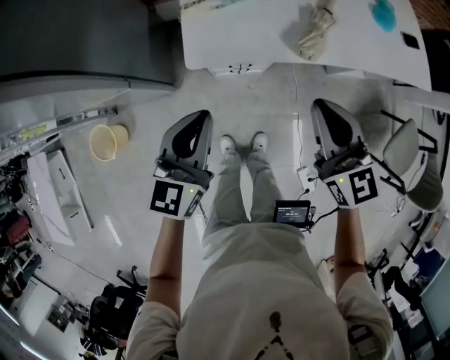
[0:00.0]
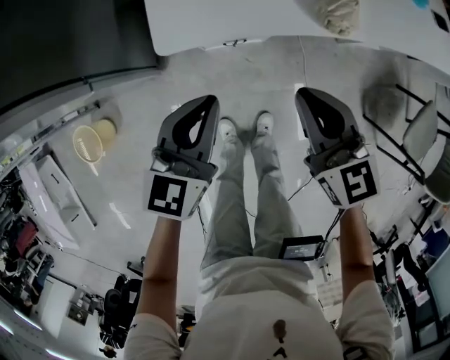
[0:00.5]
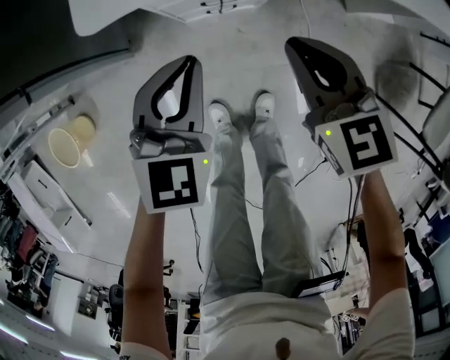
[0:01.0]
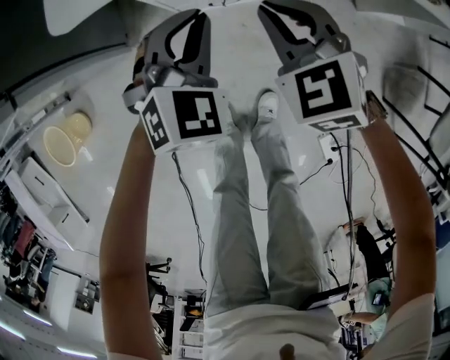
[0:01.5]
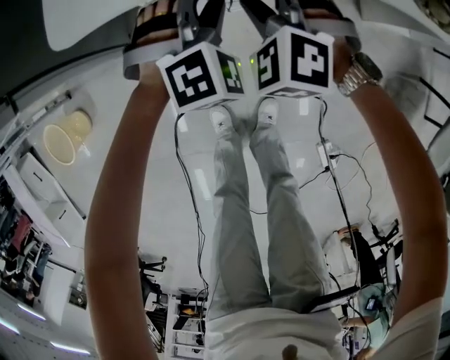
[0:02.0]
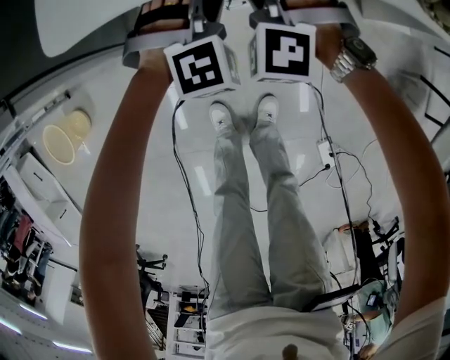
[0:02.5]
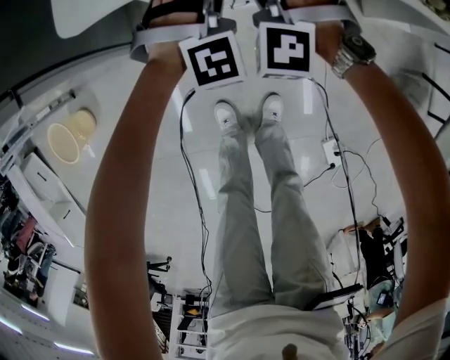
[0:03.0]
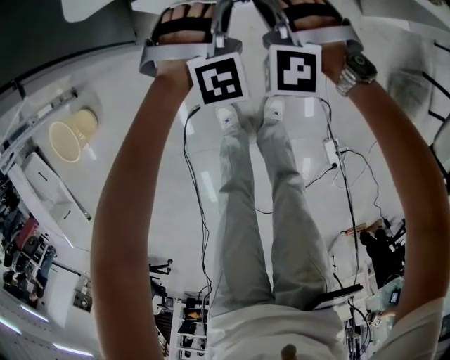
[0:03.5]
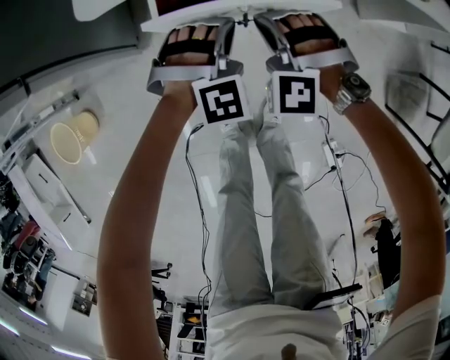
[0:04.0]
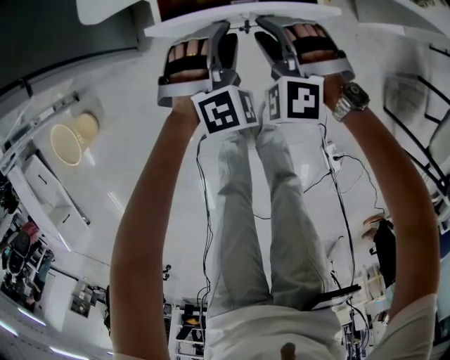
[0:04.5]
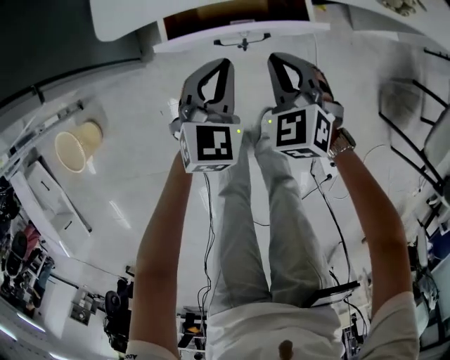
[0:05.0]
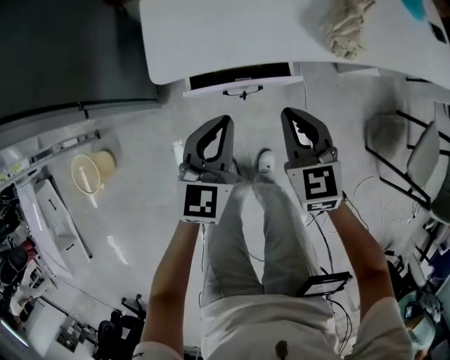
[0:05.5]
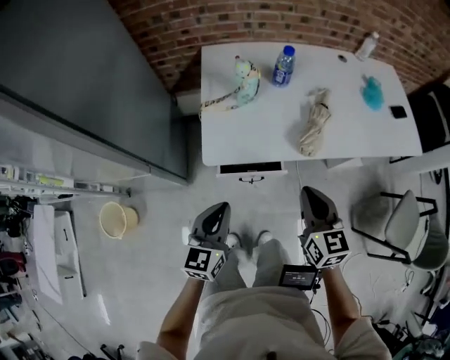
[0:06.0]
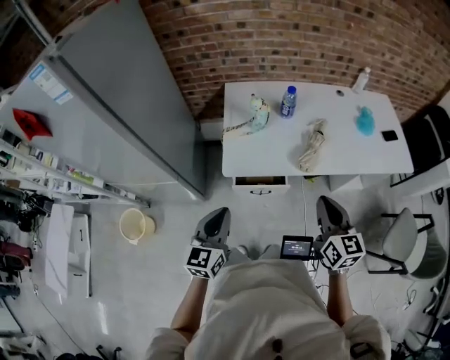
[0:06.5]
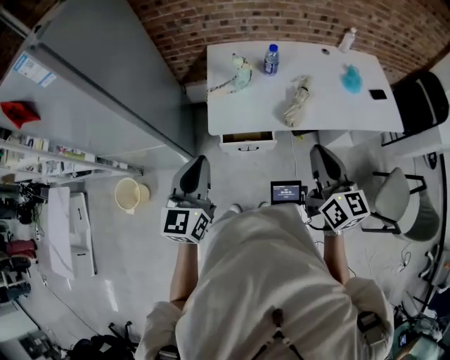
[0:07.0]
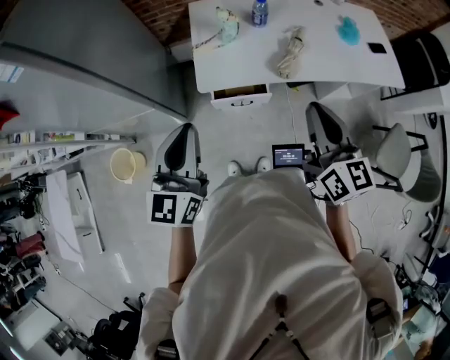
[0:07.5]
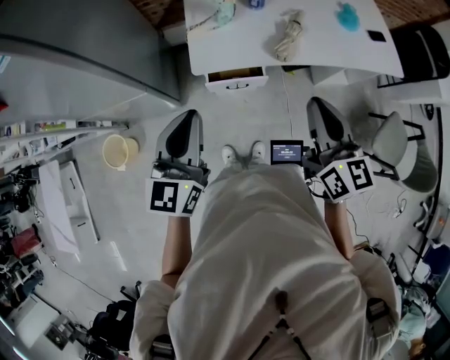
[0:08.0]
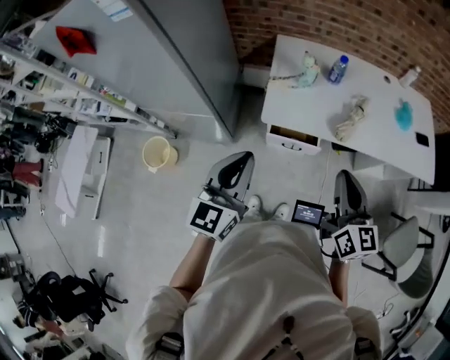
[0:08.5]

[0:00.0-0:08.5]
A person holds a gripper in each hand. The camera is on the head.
0:00.0 to 0:02.0: The grippers both shift downward by some 50 cm. The left gripper rotates around the line of its fingers by some 60 degrees, clockwise from behind, and opens its fingers; the right gripper rotates around the line of its fingers by about 50 degrees, counterclockwise from behind, and opens.
0:02.0 to 0:04.0: Both grippers travel together backward, approximately 10 cm. The right gripper closes up. Meanwhile the left gripper closes up.
0:04.0 to 0:06.5: The grippers both shift upward by some 50 cm. The right gripper rotates around the line of its fingers by about 90 degrees, clockwise from behind, and opens, then closes again. The left gripper rolls counterclockwise, seen from behind, by approximately 80 degrees, and opens, then closes again.
0:06.5 to 0:08.5: The right gripper travels upward, backward and to the left by approximately 10 cm, while the left gripper is displaced upward and backward by roughly 15 cm.

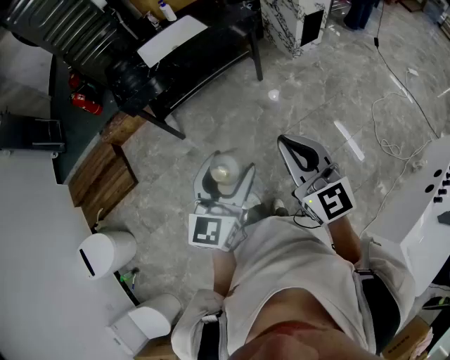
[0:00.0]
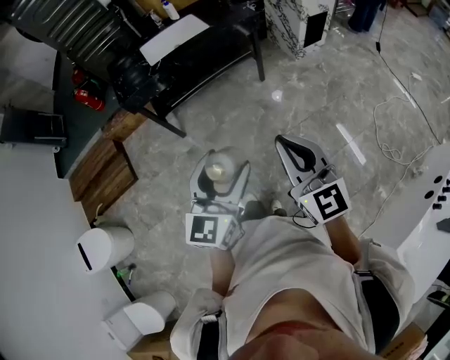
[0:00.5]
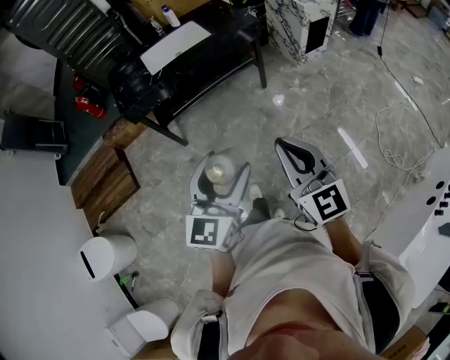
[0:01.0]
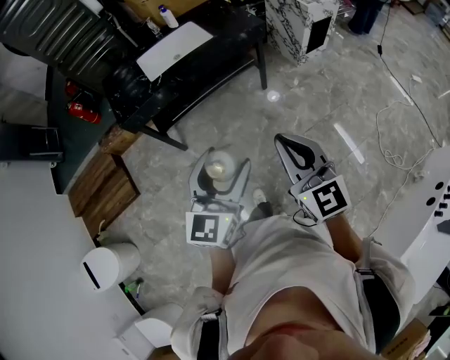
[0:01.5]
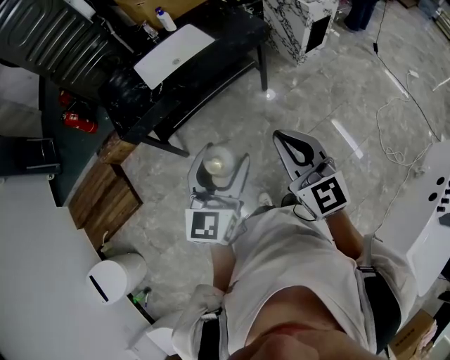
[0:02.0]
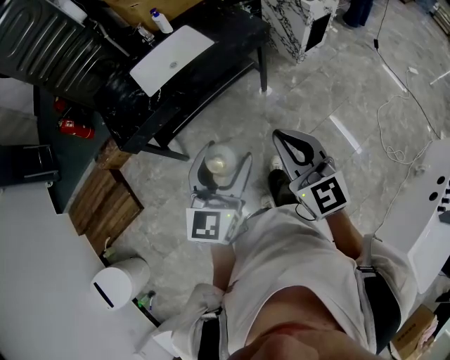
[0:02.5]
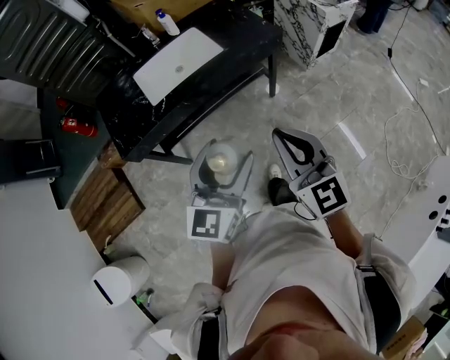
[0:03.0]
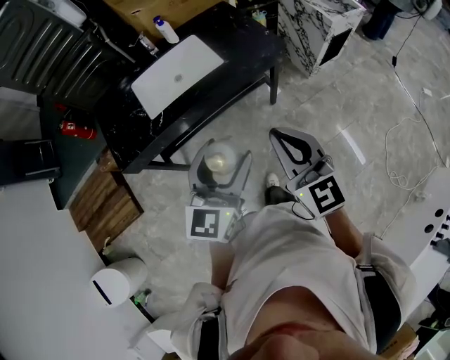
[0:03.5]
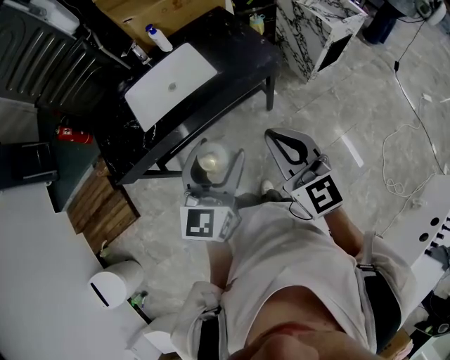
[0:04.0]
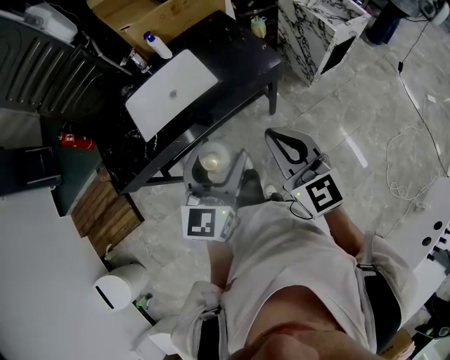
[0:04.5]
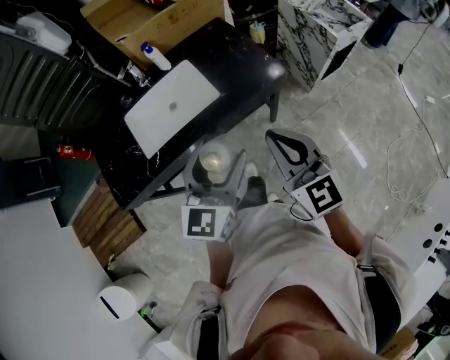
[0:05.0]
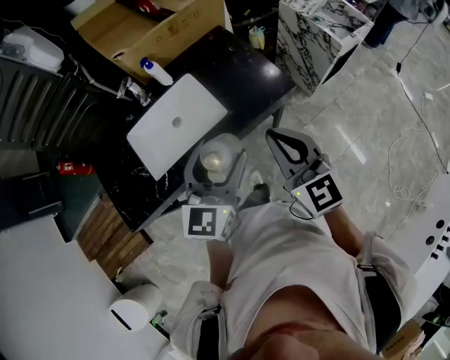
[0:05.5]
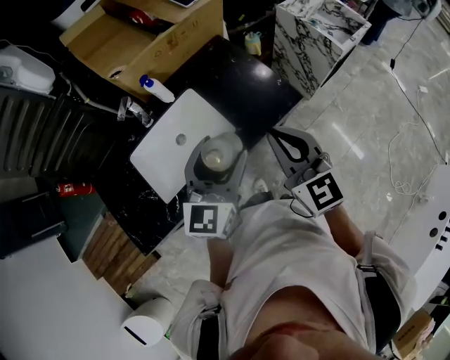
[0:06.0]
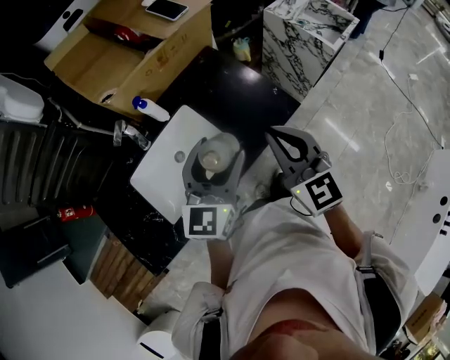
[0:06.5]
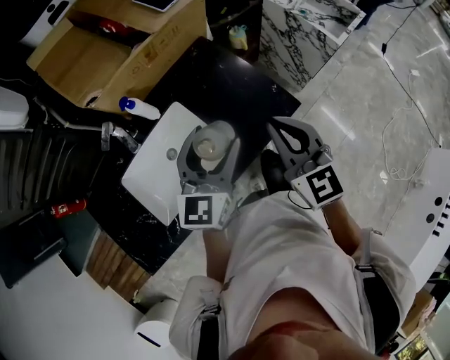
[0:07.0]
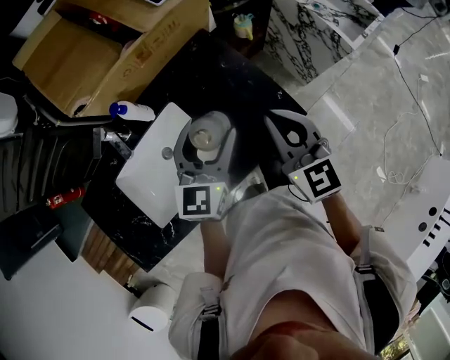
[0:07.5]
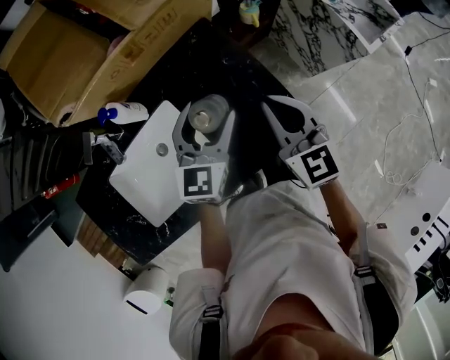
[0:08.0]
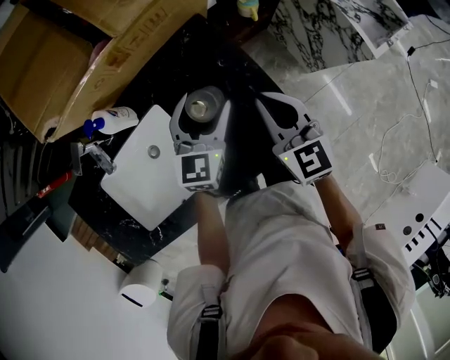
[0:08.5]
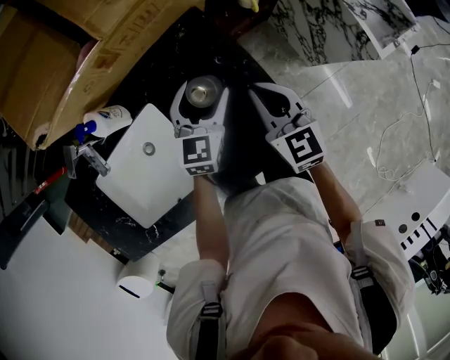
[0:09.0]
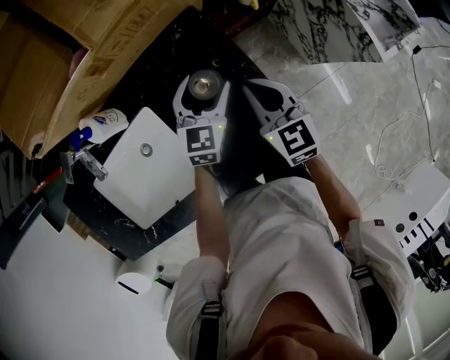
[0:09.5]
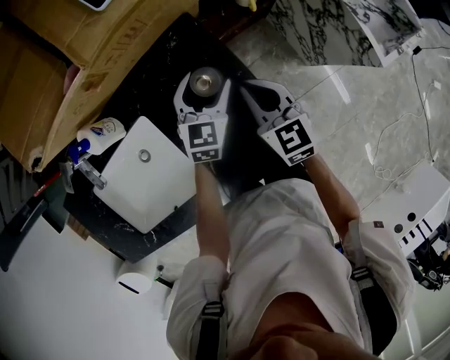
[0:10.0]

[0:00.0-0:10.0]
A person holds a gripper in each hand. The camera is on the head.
0:00.0 to 0:02.0: Both grippers move forward, about 20 cm.
0:02.0 to 0:04.0: The grippers both shift forward by roughly 30 cm.
0:04.0 to 0:06.0: The grippers both shift forward by approximately 25 cm.
0:06.0 to 0:08.0: Both grippers travel together forward and downward, some 30 cm.
0:08.0 to 0:10.0: The left gripper goes some 20 cm downward, forward and to the right. The right gripper travels downward and forward by about 15 cm.

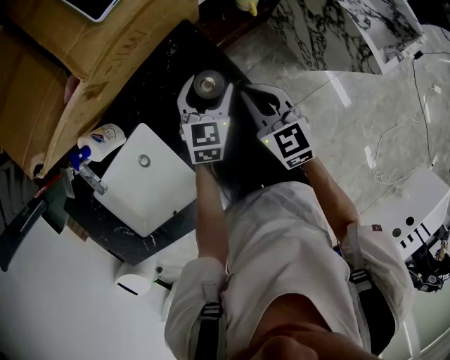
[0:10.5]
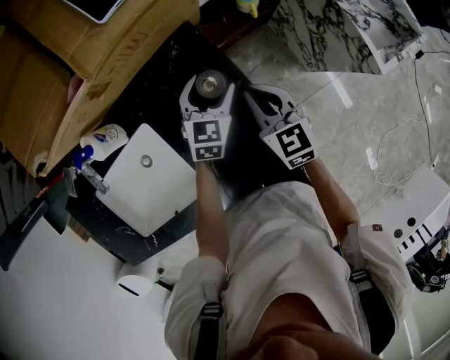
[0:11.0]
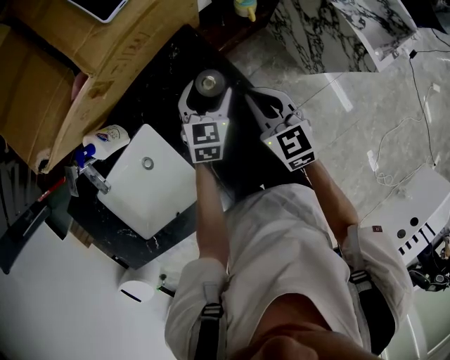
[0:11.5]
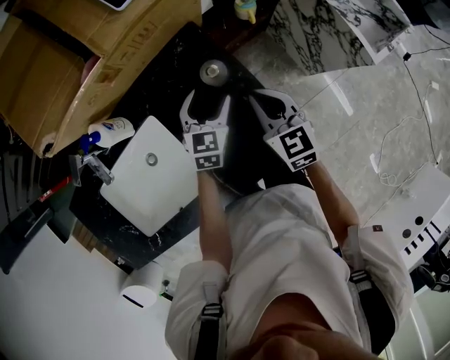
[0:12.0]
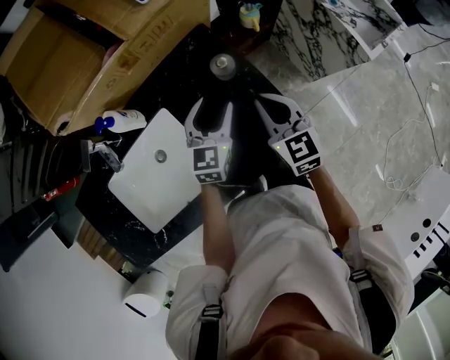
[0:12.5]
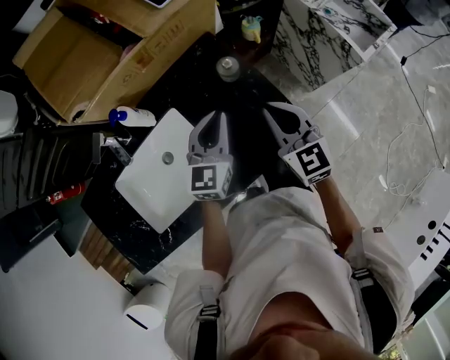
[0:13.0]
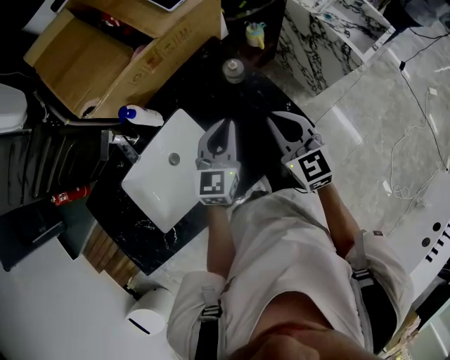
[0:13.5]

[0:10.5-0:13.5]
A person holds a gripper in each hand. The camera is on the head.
0:10.5 to 0:12.0: The left gripper changes place by some 5 cm.
0:12.0 to 0:13.5: The left gripper goes about 20 cm upward and backward, and closes up, while the right gripper shifts some 15 cm backward and upward.

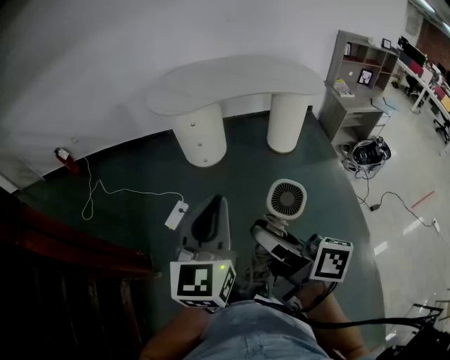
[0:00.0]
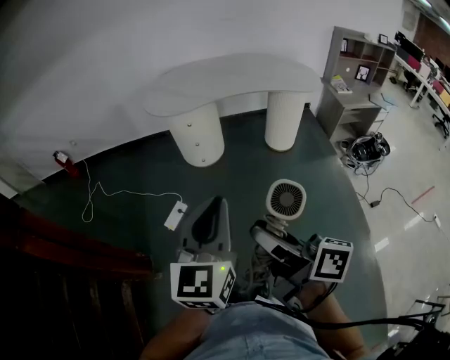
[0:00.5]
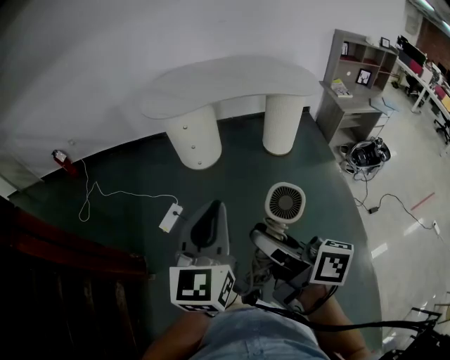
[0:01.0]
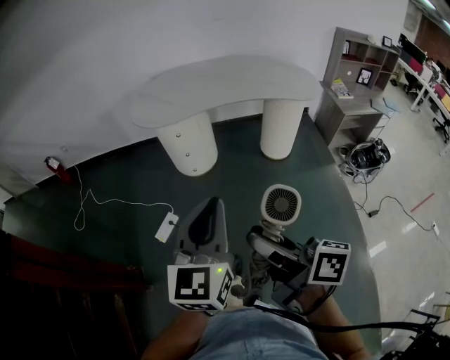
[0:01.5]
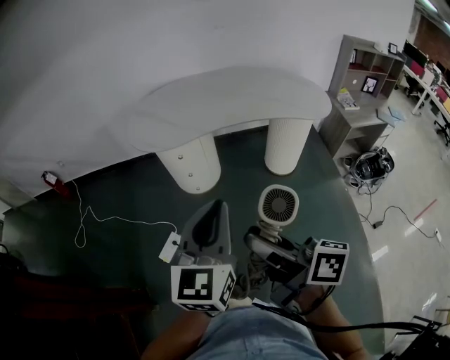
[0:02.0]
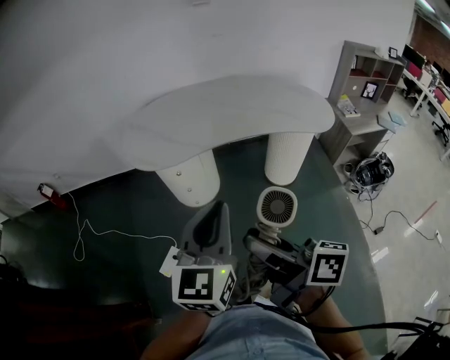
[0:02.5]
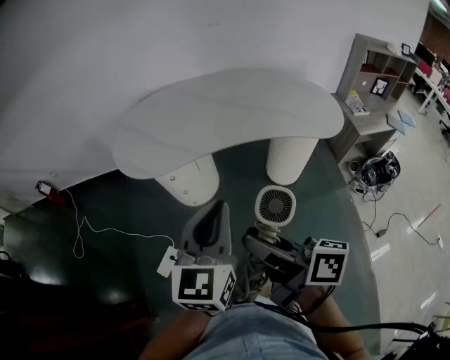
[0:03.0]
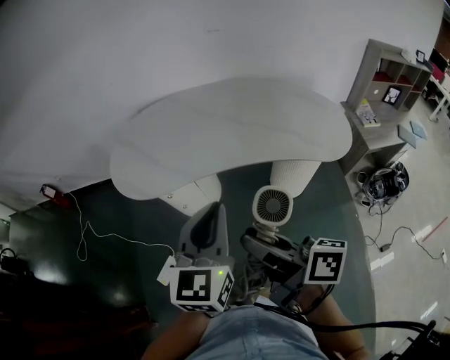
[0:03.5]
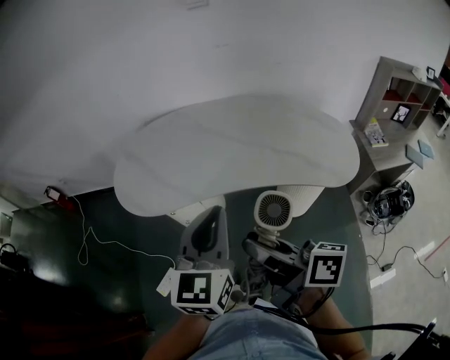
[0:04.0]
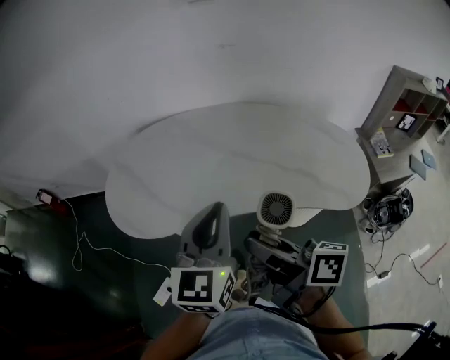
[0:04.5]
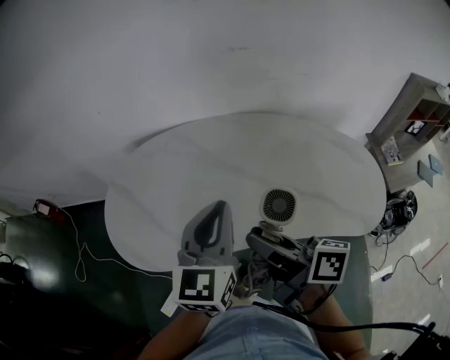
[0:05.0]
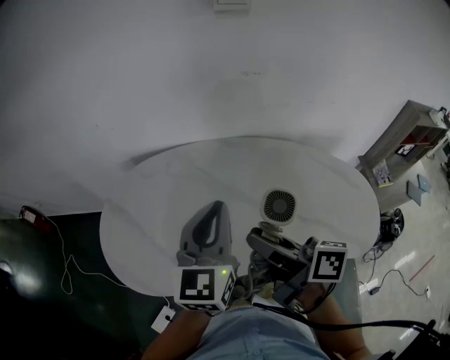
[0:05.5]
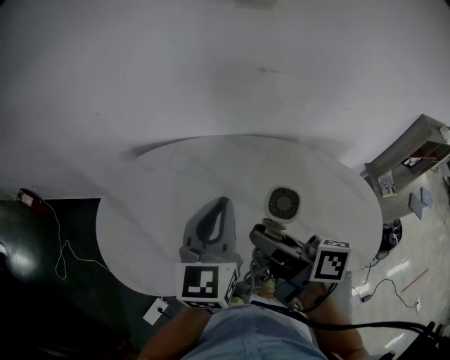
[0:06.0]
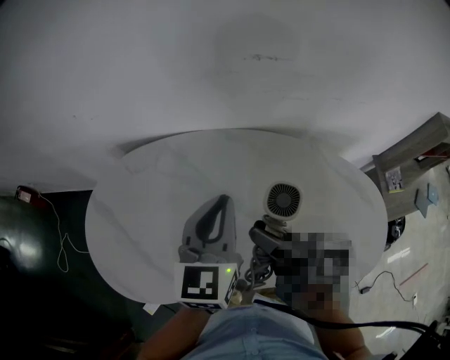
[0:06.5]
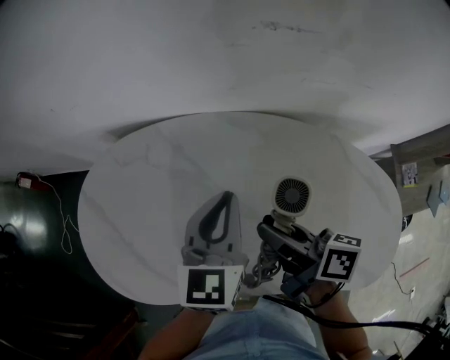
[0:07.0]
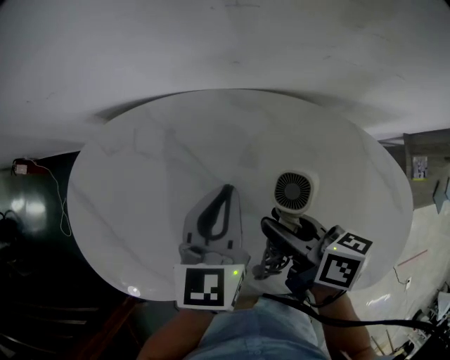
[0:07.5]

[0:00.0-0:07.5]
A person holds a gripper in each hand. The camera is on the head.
0:00.0 to 0:02.0: The grippers both shift forward and to the right by some 25 cm.
0:02.0 to 0:04.0: The grippers both shift forward and to the right by roughly 35 cm.
0:04.0 to 0:05.5: The grippers both shift forward by about 35 cm.
0:05.5 to 0:07.5: Both grippers move downward, forward and to the right, some 25 cm. The right gripper turns by some 30 degrees; the left gripper swivels approximately 20 degrees.
